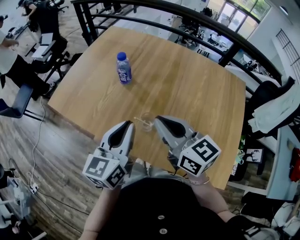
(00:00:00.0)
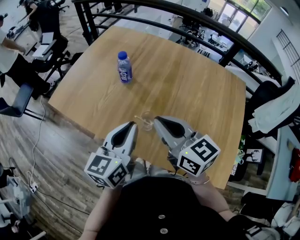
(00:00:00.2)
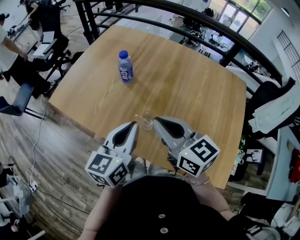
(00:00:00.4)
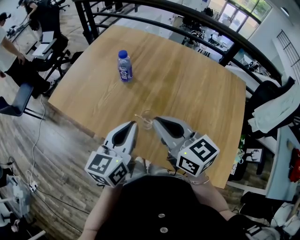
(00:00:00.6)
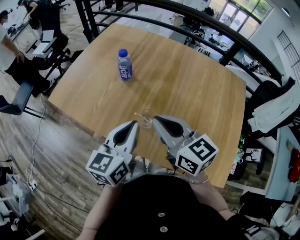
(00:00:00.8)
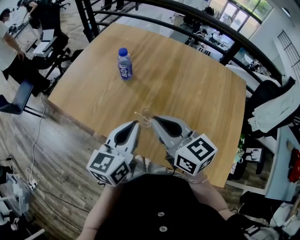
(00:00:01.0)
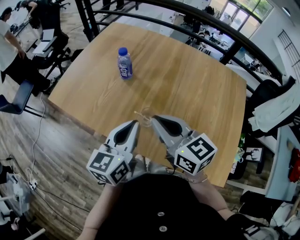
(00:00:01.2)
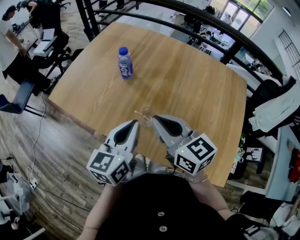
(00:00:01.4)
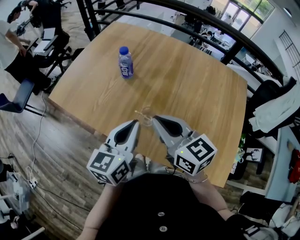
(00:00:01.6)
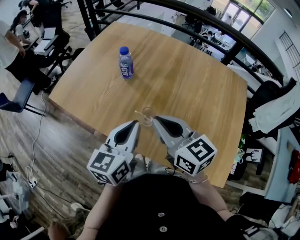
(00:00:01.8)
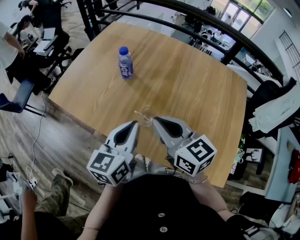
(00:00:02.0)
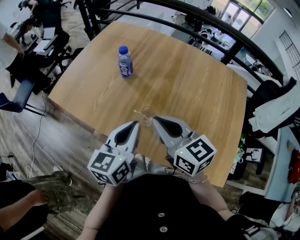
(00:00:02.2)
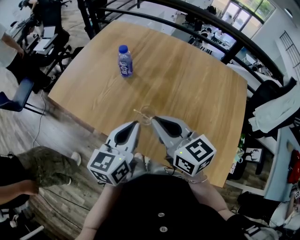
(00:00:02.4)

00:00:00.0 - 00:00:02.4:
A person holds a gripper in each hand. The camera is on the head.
00:00:00.0 - 00:00:01.2: The grippers stay close to where they were, moving slightly.
00:00:01.2 - 00:00:02.4: Both grippers stay put.

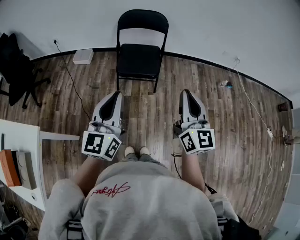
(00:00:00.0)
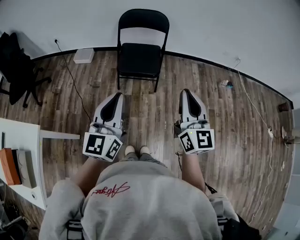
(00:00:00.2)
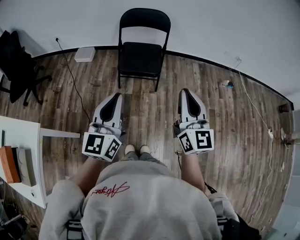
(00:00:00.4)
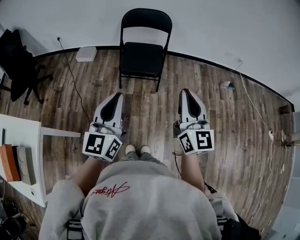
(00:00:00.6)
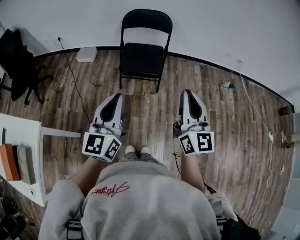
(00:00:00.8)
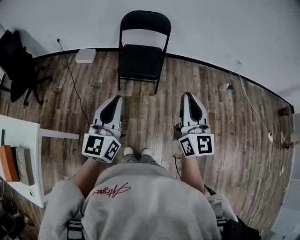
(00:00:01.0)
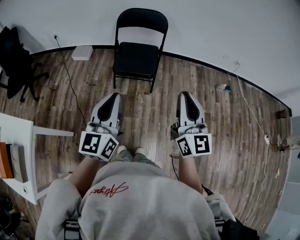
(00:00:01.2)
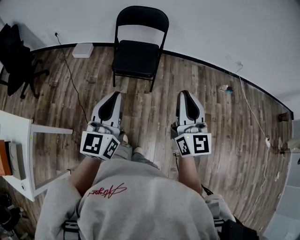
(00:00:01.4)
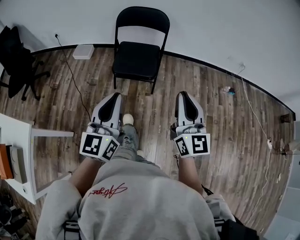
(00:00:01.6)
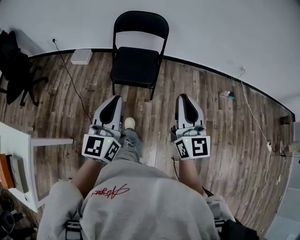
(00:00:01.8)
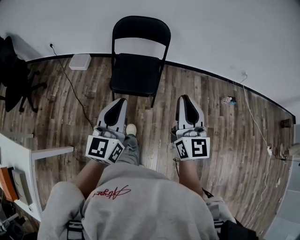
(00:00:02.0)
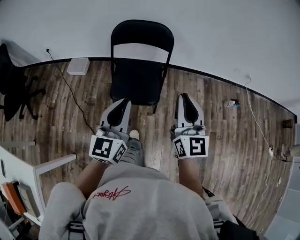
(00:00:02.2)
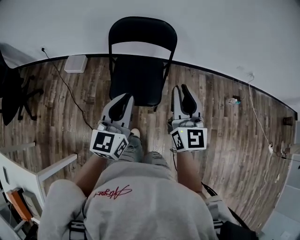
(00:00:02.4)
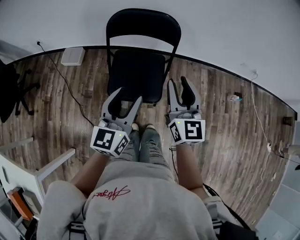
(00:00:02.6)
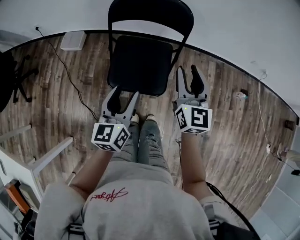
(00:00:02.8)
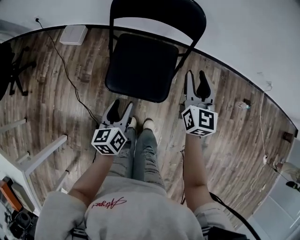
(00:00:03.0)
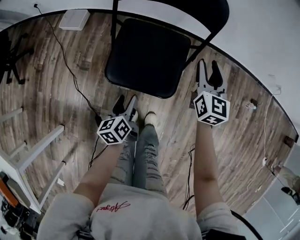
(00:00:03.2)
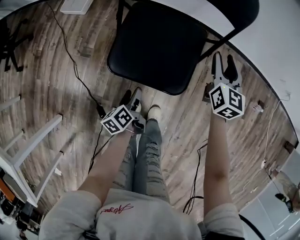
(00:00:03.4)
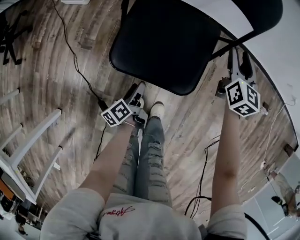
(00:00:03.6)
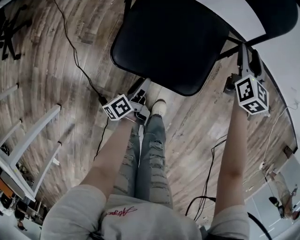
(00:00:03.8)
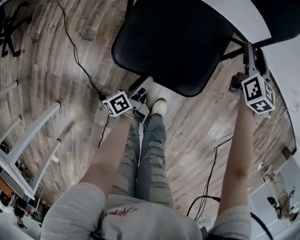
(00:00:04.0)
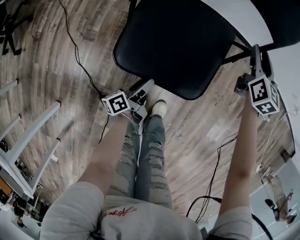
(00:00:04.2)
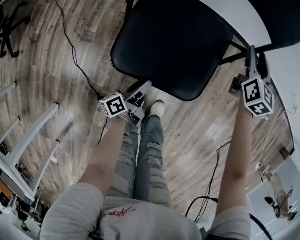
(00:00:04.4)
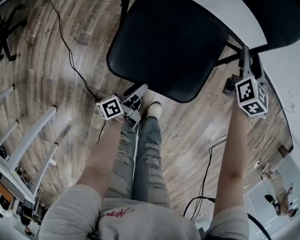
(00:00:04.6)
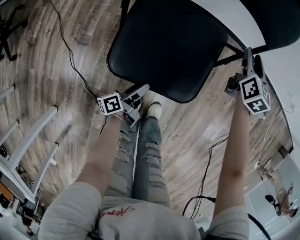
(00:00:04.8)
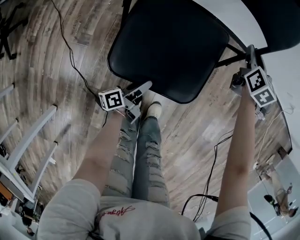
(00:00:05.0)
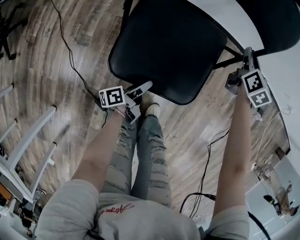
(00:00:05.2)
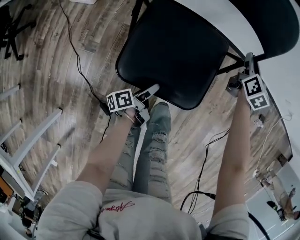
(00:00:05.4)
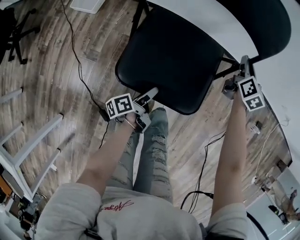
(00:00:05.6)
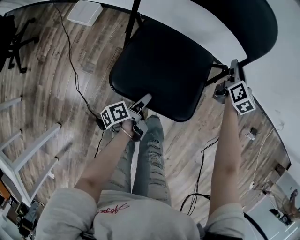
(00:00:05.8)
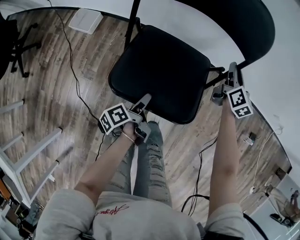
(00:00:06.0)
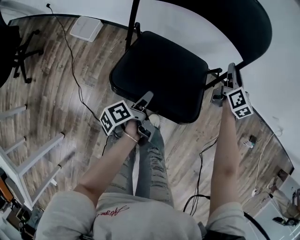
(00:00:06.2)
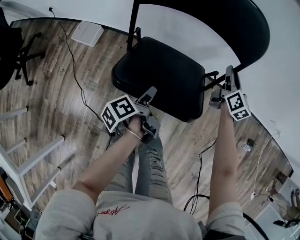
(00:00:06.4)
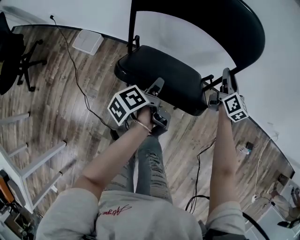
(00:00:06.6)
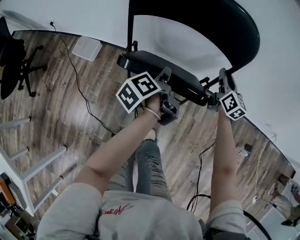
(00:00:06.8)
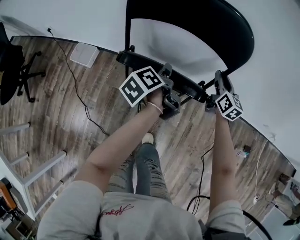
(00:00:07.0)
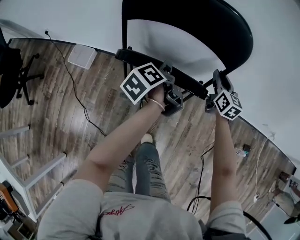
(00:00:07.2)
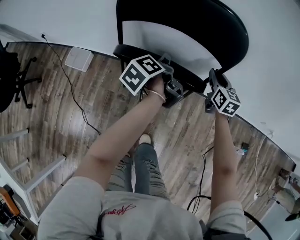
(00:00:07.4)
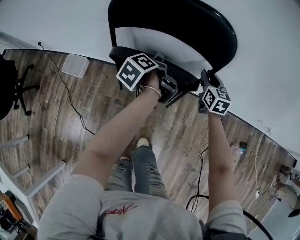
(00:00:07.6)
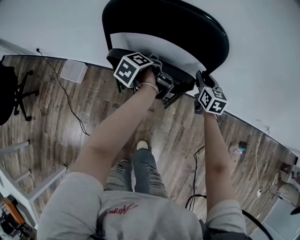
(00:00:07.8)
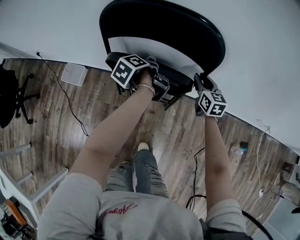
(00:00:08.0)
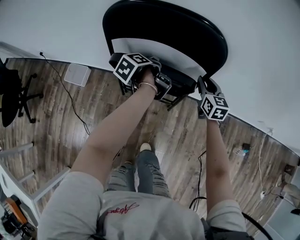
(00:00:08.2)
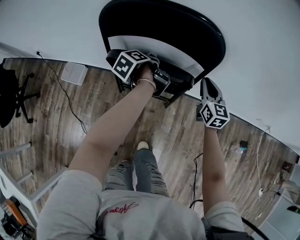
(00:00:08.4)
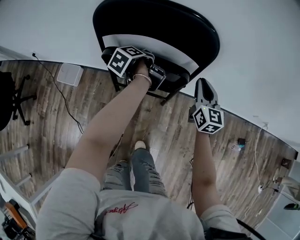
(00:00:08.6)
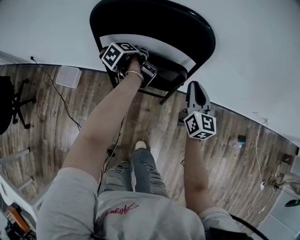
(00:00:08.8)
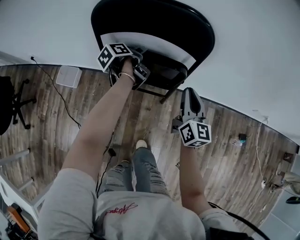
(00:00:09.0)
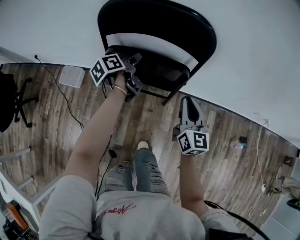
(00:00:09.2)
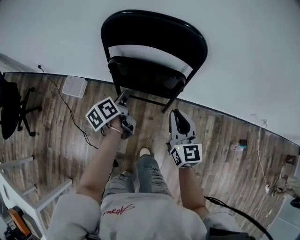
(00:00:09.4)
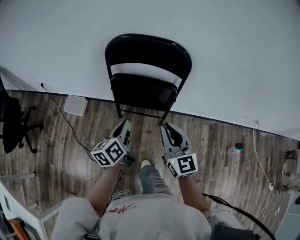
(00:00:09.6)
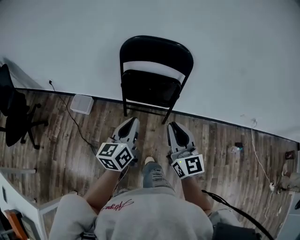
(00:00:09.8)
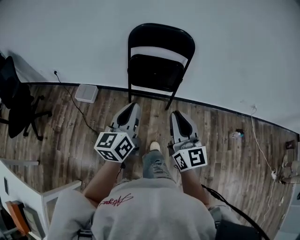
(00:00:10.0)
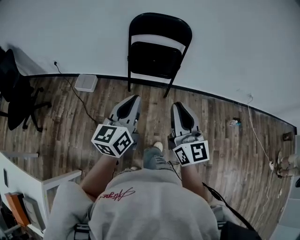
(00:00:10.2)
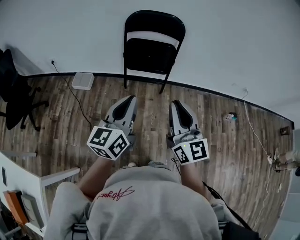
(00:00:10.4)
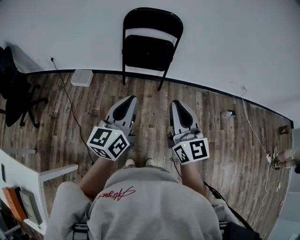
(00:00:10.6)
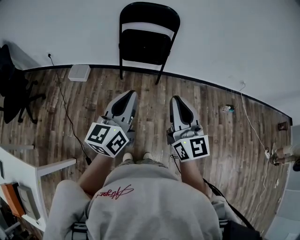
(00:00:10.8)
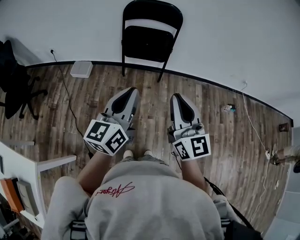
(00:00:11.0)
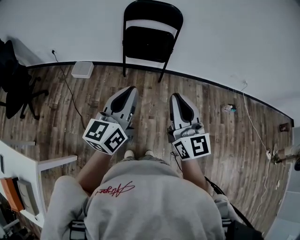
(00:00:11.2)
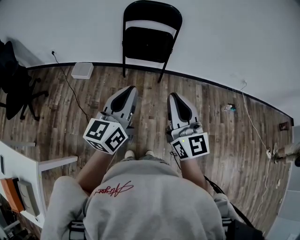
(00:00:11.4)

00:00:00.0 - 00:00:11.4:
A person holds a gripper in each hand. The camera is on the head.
00:00:00.0 - 00:00:01.4: The left gripper moves to the right, roughly 5 cm. The right gripper shifts by roughly 5 cm.
00:00:01.4 - 00:00:02.8: The right gripper shifts approximately 40 cm forward, and opens, while the left gripper travels forward and downward by about 40 cm, swivels roughly 20 degrees, and opens.
00:00:02.8 - 00:00:04.2: The left gripper goes approximately 40 cm downward, and rotates around the line of its fingers by about 60 degrees, counterclockwise from behind, while the right gripper heads downward and forward, covering approximately 35 cm.
00:00:04.2 - 00:00:05.6: The grippers both shift forward by about 5 cm. The right gripper closes up.
00:00:05.6 - 00:00:07.2: The left gripper shifts roughly 40 cm forward and upward, turns by approximately 20 degrees, and closes up. Meanwhile the right gripper moves forward and upward, some 15 cm.
00:00:07.2 - 00:00:08.6: The right gripper shifts roughly 5 cm upward. Meanwhile the left gripper goes approximately 10 cm forward.
00:00:08.6 - 00:00:10.0: The two grippers travel together, backward, about 50 cm. The grippers both shift upward by about 25 cm. The left gripper twists some 60 degrees clockwise, seen from behind, and closes, while the right gripper turns by about 20 degrees.
00:00:10.0 - 00:00:11.4: The two grippers go about 20 cm backward.

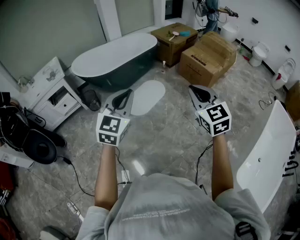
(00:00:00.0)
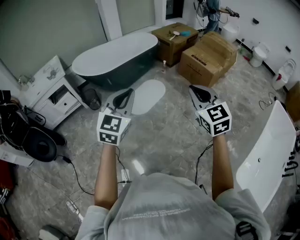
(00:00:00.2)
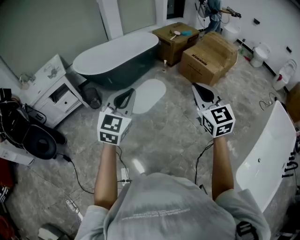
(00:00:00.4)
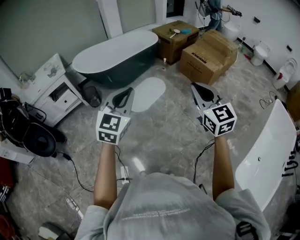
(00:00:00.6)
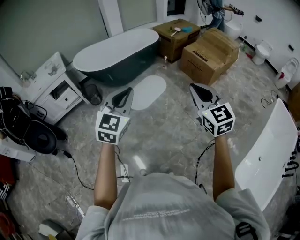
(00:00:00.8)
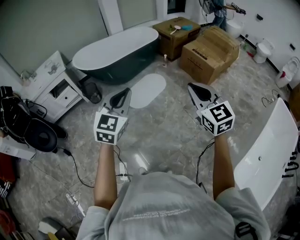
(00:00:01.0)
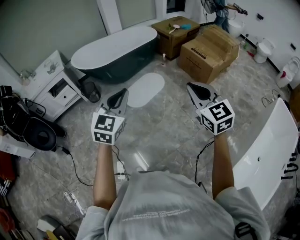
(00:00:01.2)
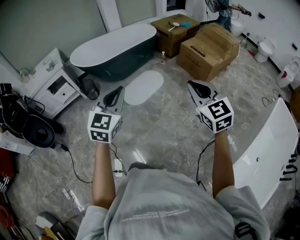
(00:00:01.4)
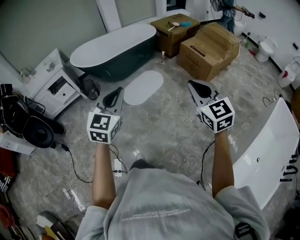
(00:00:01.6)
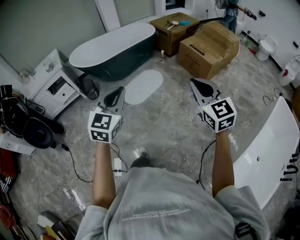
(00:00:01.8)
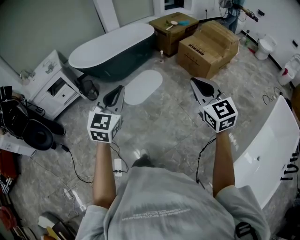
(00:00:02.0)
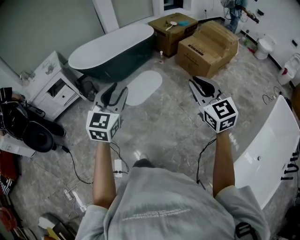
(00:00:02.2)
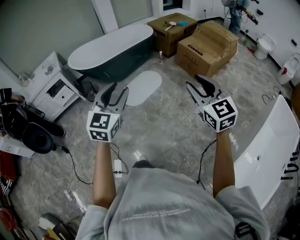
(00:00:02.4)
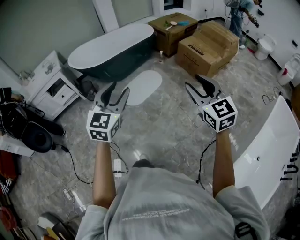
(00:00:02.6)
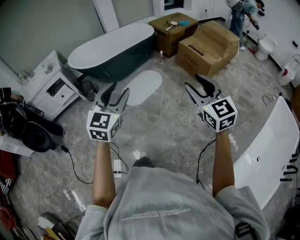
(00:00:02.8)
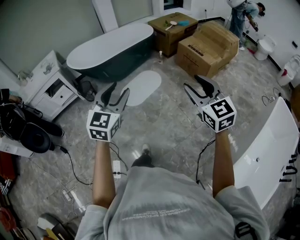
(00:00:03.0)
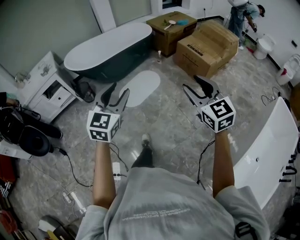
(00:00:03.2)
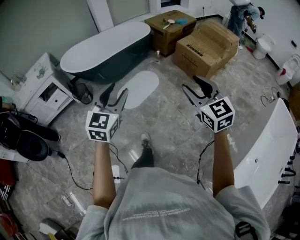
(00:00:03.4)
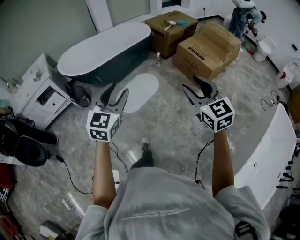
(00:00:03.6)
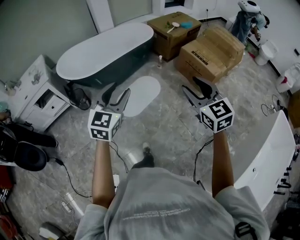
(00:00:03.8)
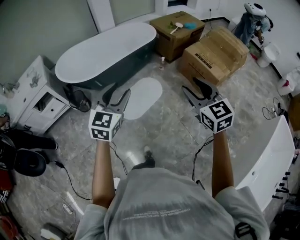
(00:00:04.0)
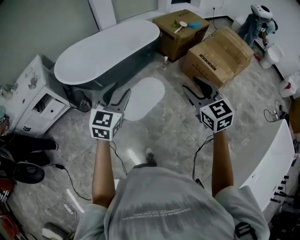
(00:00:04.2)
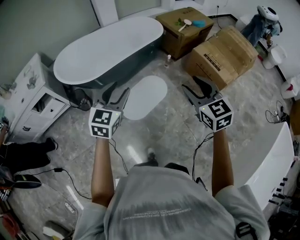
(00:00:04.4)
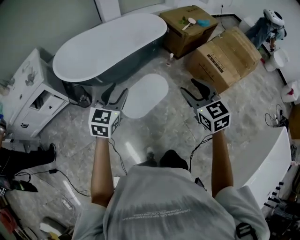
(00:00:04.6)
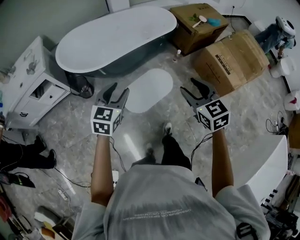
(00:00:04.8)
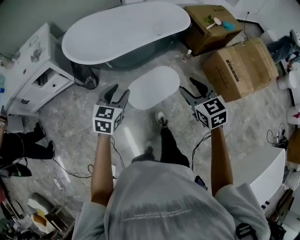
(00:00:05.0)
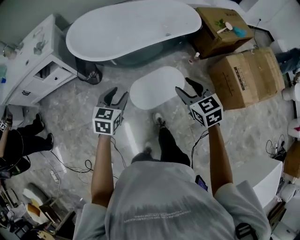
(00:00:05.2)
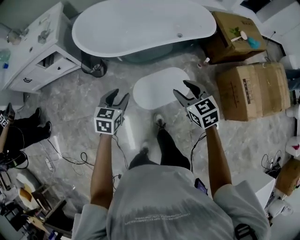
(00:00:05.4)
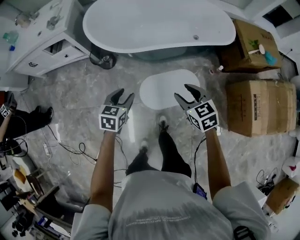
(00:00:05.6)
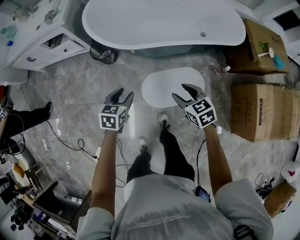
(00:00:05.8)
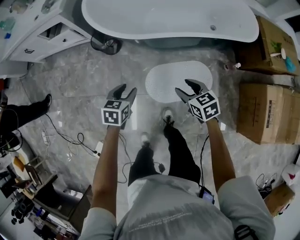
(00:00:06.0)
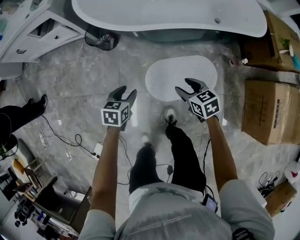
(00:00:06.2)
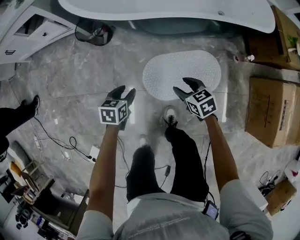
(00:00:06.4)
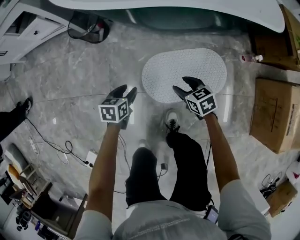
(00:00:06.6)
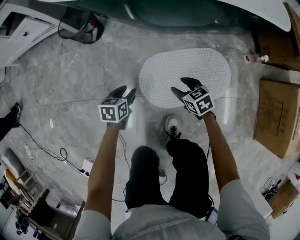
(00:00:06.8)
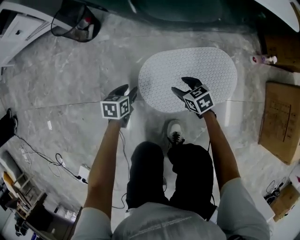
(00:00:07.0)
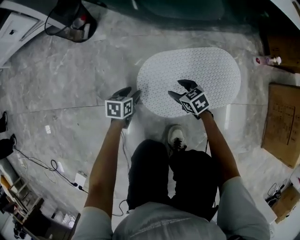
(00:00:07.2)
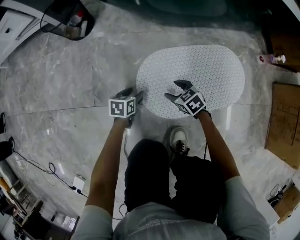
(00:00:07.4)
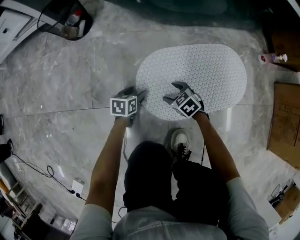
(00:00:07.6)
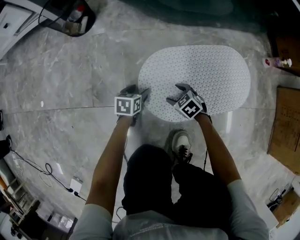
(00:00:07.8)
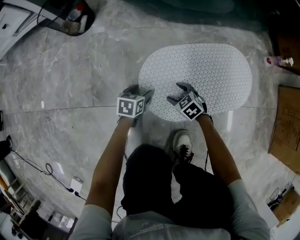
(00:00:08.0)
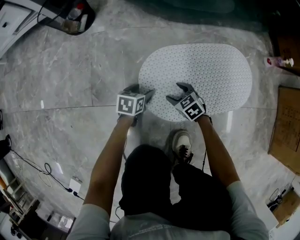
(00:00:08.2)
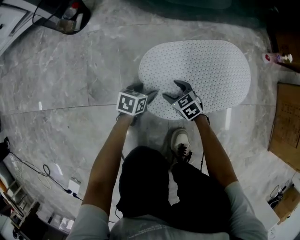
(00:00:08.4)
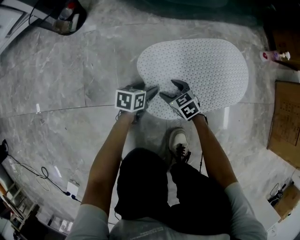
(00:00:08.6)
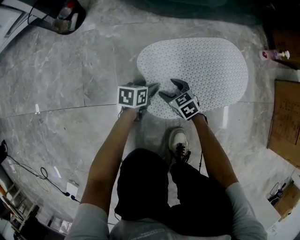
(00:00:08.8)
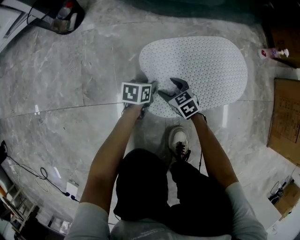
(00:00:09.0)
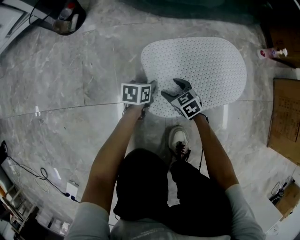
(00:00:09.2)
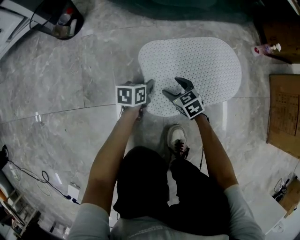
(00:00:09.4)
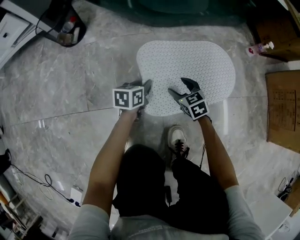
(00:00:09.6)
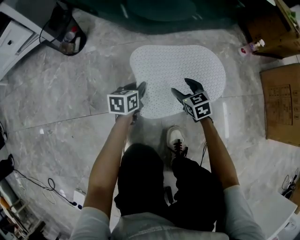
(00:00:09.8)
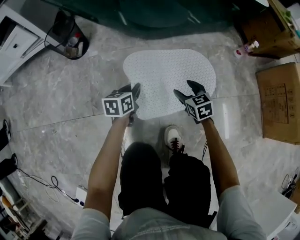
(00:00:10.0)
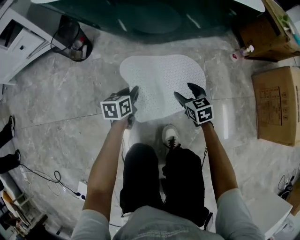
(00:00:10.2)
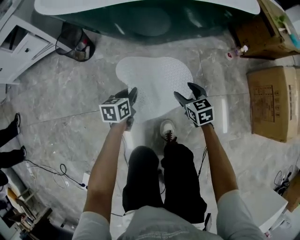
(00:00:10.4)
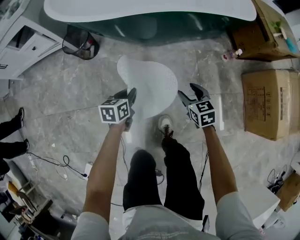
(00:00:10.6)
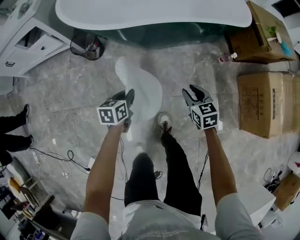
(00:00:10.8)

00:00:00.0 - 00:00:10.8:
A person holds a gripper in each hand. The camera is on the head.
00:00:00.0 - 00:00:01.6: The grippers both shift to the right by roughly 10 cm.
00:00:01.6 - 00:00:03.0: The right gripper opens its fingers. Meanwhile the left gripper opens its fingers.
00:00:03.0 - 00:00:04.6: Both grippers are carried forward, some 40 cm.
00:00:04.6 - 00:00:06.2: The two grippers go roughly 50 cm downward. The right gripper swivels about 50 degrees. The left gripper turns by some 50 degrees.
00:00:06.2 - 00:00:07.8: The two grippers go about 60 cm downward. The right gripper turns by roughly 20 degrees.
00:00:07.8 - 00:00:09.2: The left gripper travels to the right by approximately 10 cm, and closes.
00:00:09.2 - 00:00:10.8: Both grippers move upward, some 50 cm. The right gripper changes its angle by about 20 degrees, and closes its fingers.
